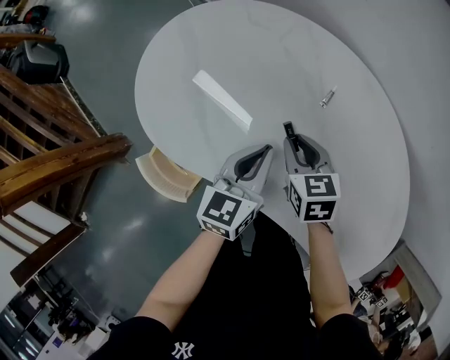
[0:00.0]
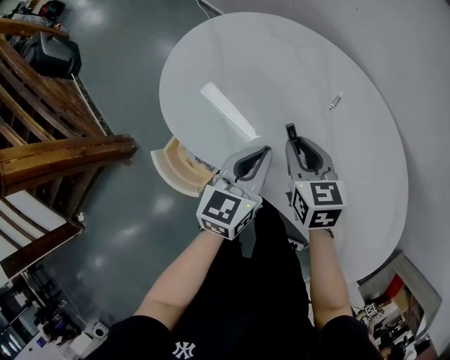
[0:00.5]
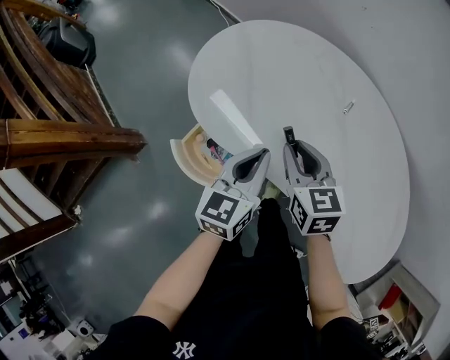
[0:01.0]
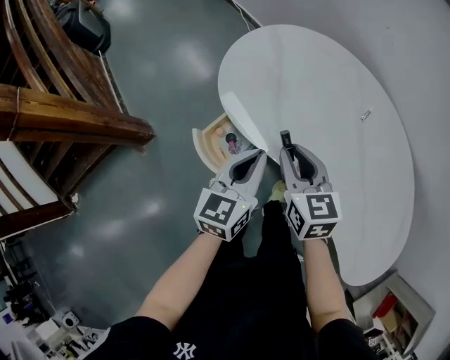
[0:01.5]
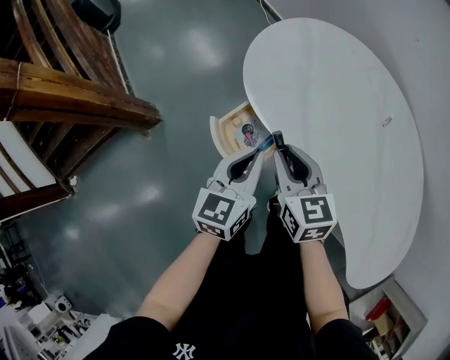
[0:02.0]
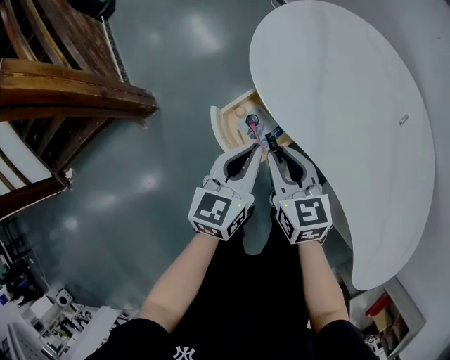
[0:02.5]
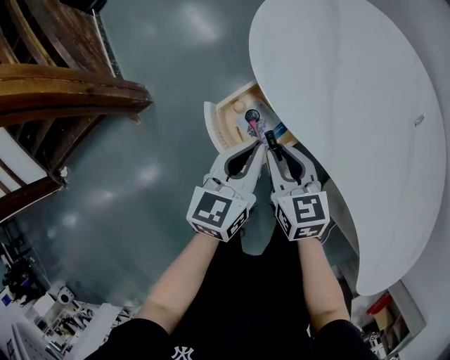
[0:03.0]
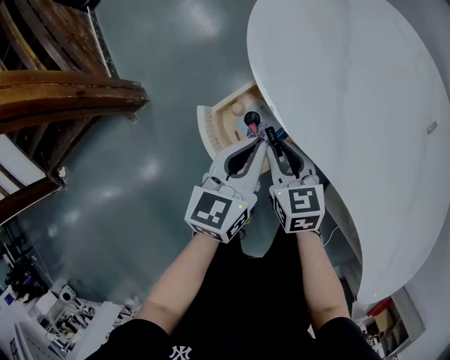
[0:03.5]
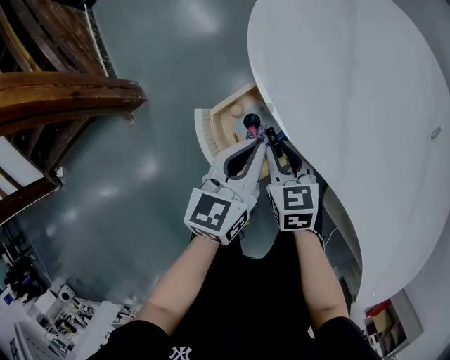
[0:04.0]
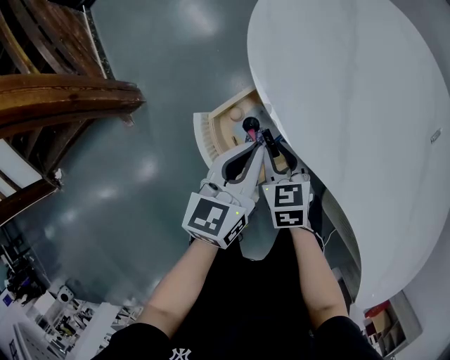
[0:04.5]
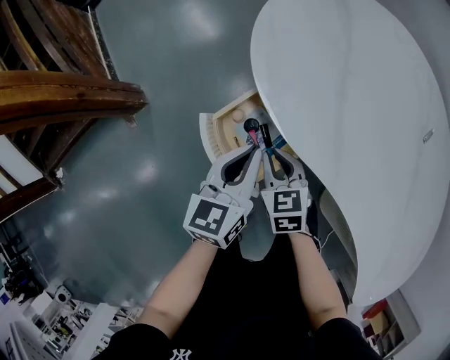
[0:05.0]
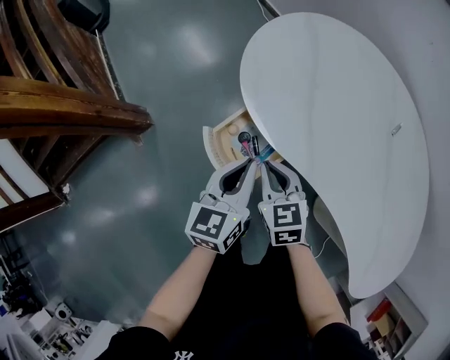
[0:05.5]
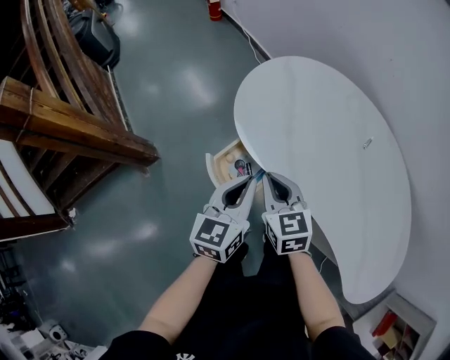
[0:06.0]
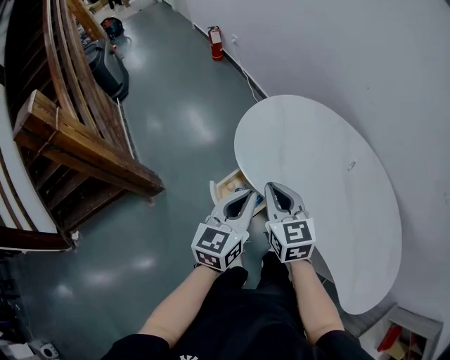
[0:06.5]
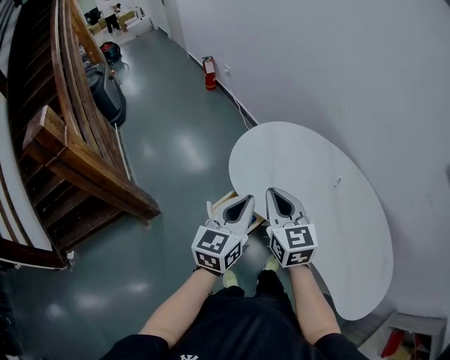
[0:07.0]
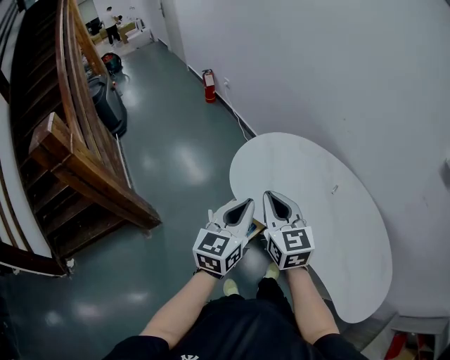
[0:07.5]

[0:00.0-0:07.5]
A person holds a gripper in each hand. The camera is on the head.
0:00.0 to 0:02.0: Both grippers move to the left and backward, about 30 cm. The right gripper turns by some 20 degrees.
0:02.0 to 0:04.0: The grippers both shift downward by approximately 20 cm.
0:04.0 to 0:05.5: Both grippers travel together upward, roughly 15 cm.
0:05.5 to 0:07.5: The two grippers go some 30 cm upward. The right gripper swivels some 30 degrees.

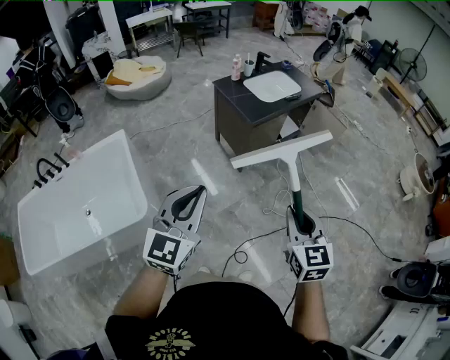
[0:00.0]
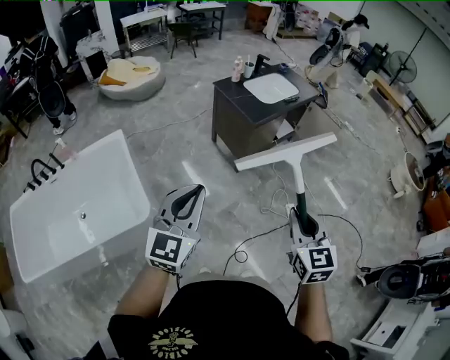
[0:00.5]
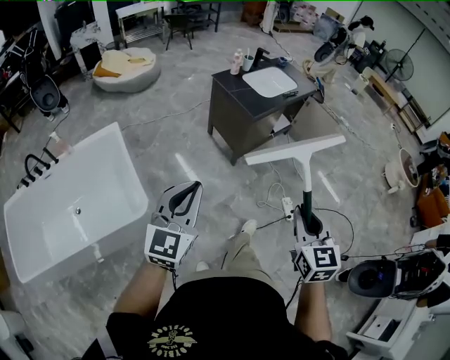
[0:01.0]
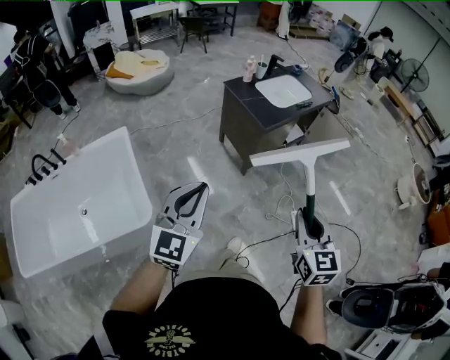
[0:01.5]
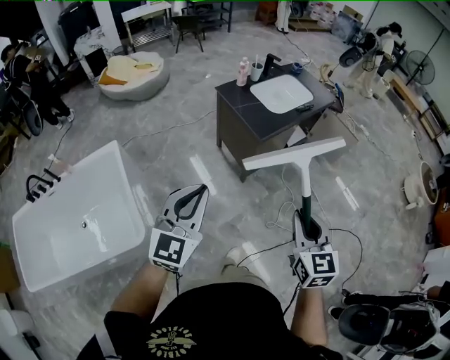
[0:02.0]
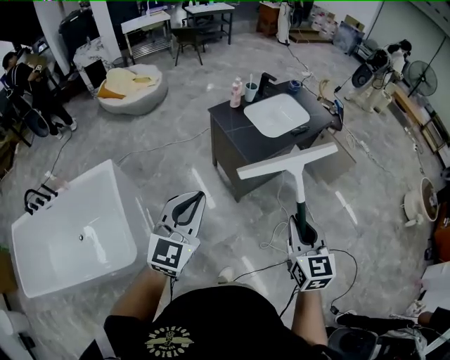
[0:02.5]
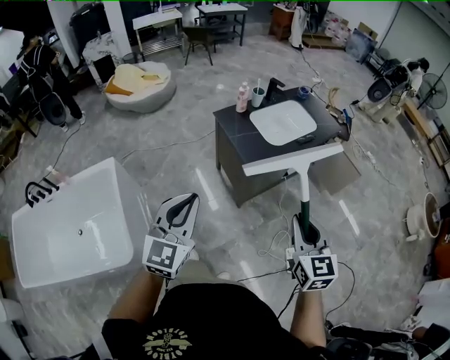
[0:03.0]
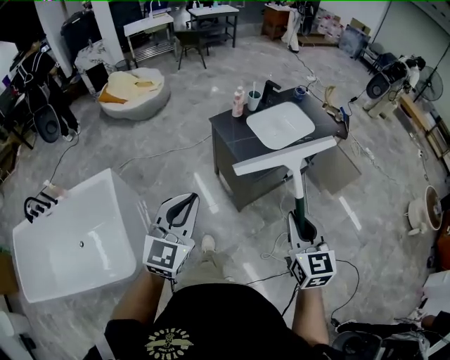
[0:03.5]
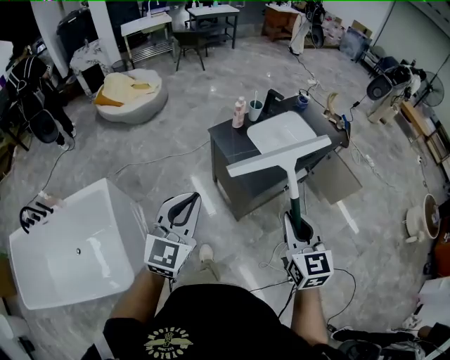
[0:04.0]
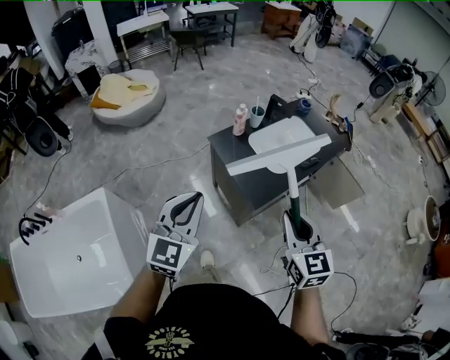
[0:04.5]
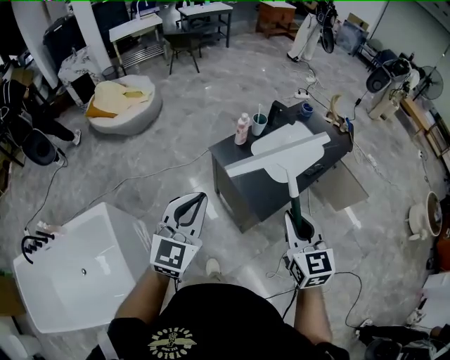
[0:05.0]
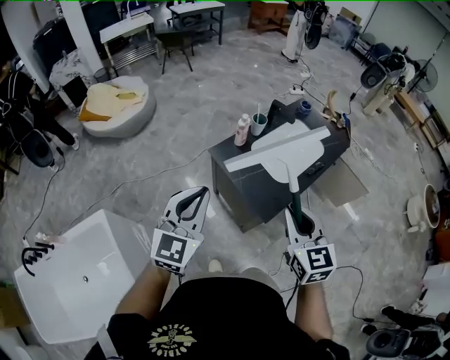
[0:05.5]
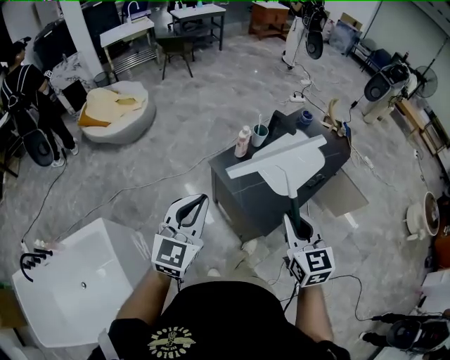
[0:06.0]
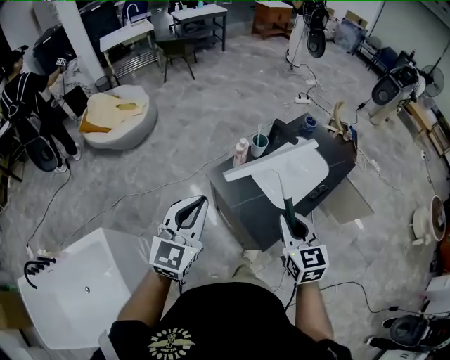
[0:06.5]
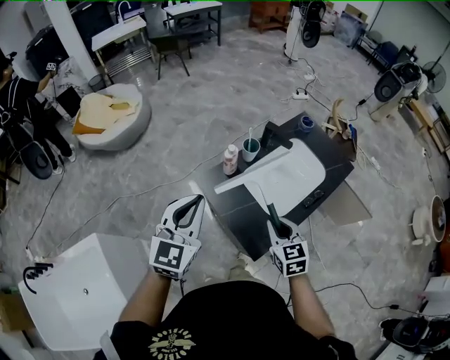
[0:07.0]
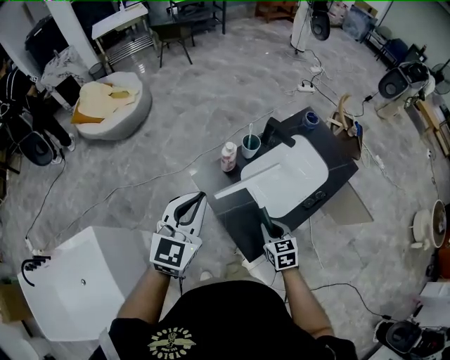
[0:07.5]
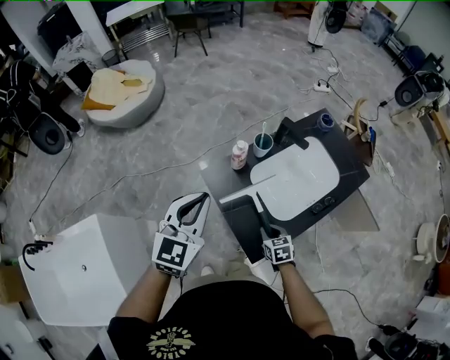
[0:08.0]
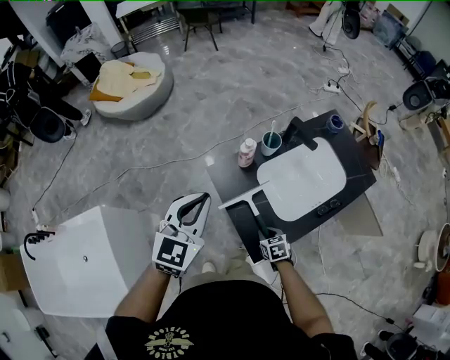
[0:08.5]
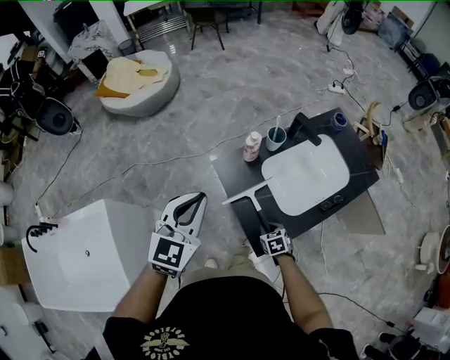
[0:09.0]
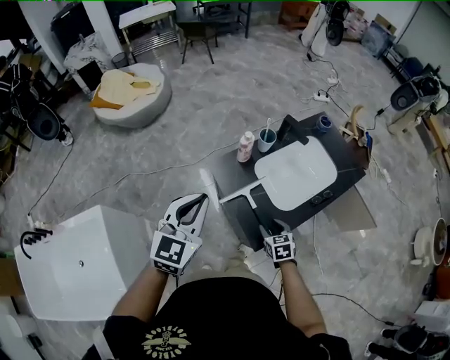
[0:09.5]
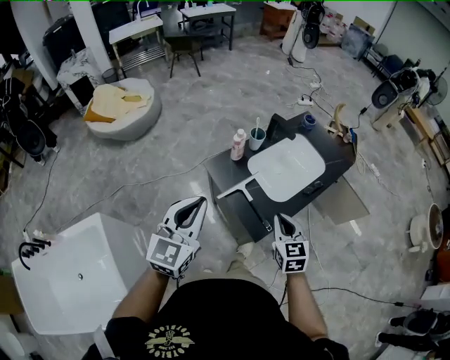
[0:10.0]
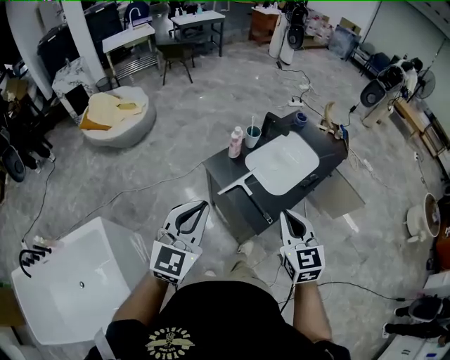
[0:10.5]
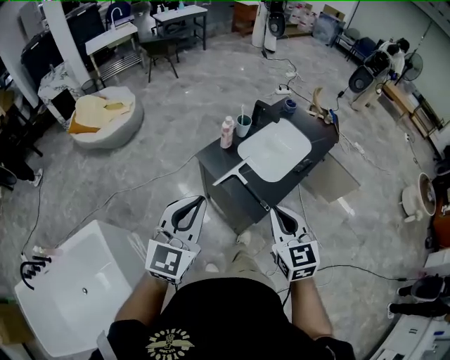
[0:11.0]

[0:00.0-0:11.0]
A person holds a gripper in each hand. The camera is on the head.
0:00.0 to 0:02.0: Both grippers travel together forward, about 15 cm.
0:02.0 to 0:03.5: Both grippers travel together forward, some 20 cm.
0:03.5 to 0:05.5: The right gripper goes about 25 cm forward and to the left. Meanwhile the left gripper is displaced forward by some 30 cm.
0:05.5 to 0:07.5: The left gripper moves forward, approximately 20 cm. The right gripper is displaced downward and forward by approximately 35 cm, and changes its angle by about 30 degrees.
0:07.5 to 0:09.0: The left gripper changes place by some 5 cm. The right gripper travels downward by about 15 cm, and rotates about 20 degrees.
0:09.0 to 0:11.0: The left gripper is displaced backward and upward by about 20 cm, and swivels some 20 degrees, while the right gripper travels upward and backward by some 40 cm, tilts its fingers some 40 degrees upward, and opens and closes again.

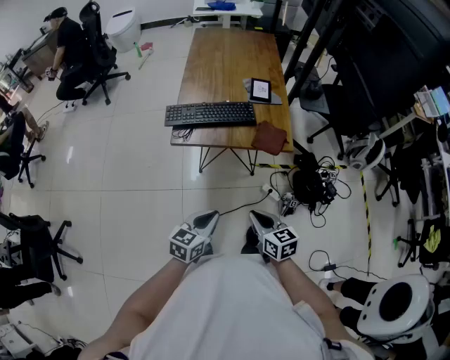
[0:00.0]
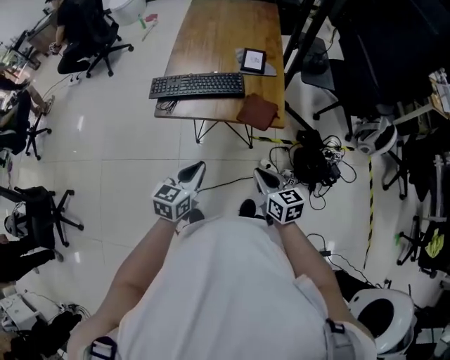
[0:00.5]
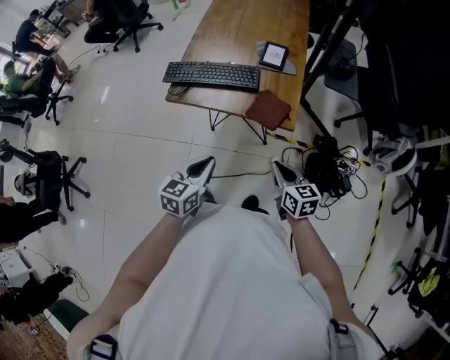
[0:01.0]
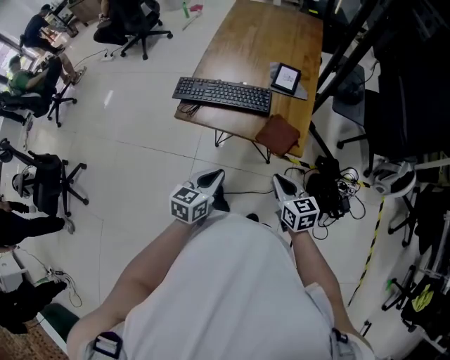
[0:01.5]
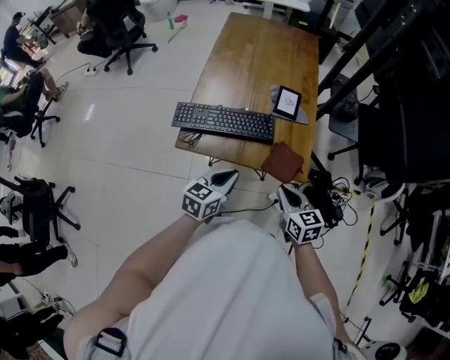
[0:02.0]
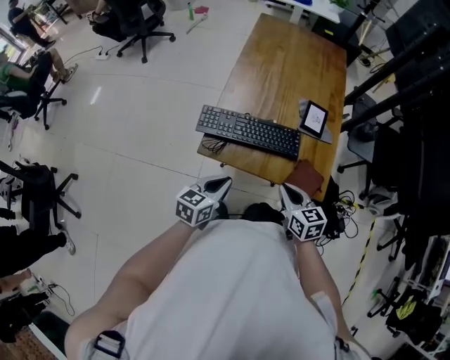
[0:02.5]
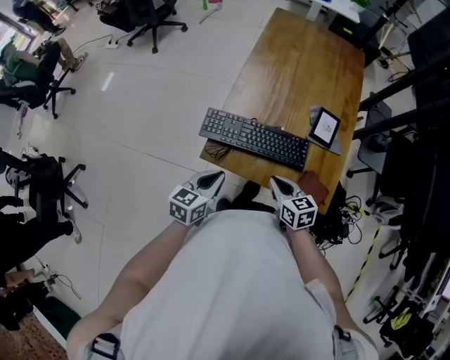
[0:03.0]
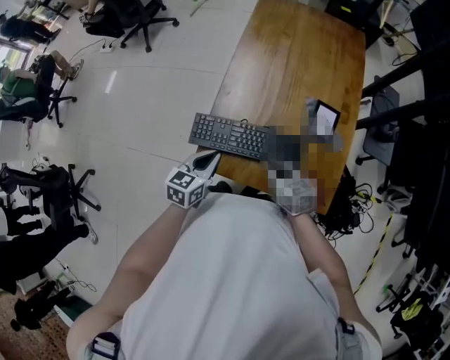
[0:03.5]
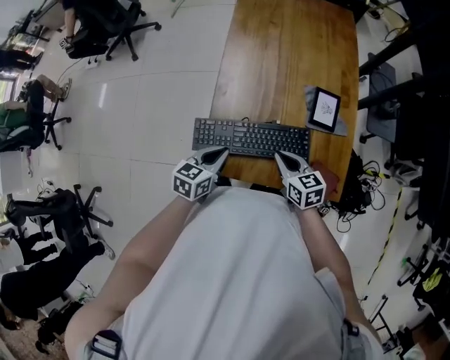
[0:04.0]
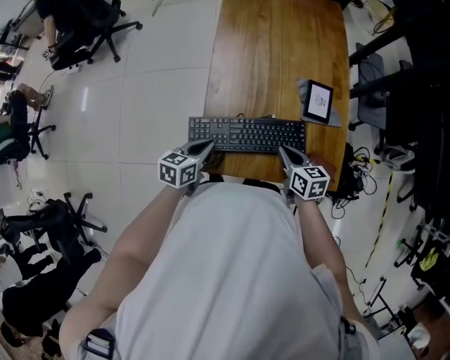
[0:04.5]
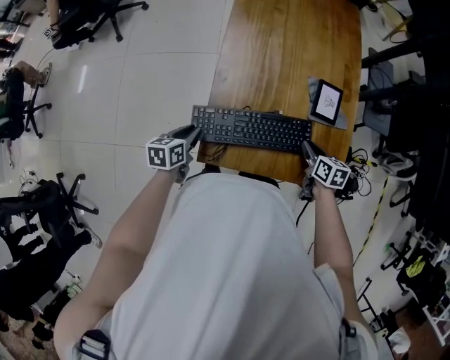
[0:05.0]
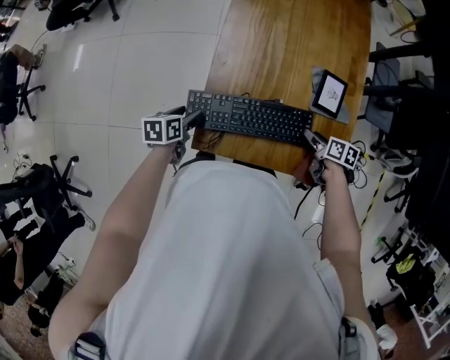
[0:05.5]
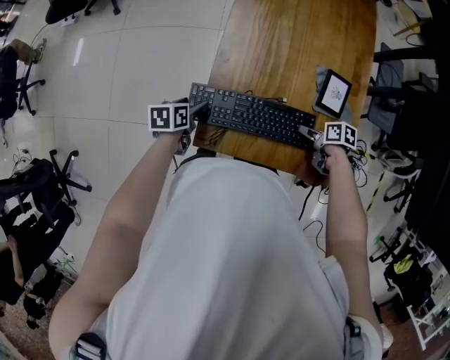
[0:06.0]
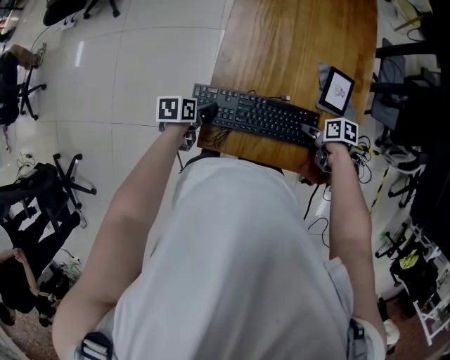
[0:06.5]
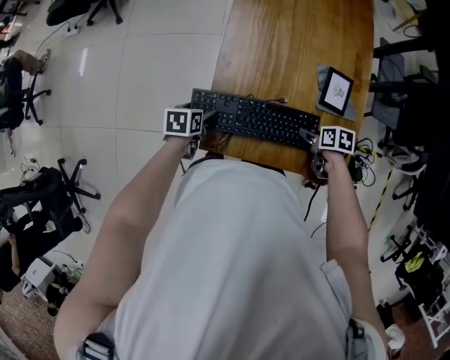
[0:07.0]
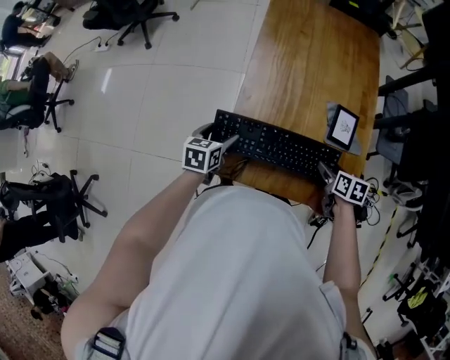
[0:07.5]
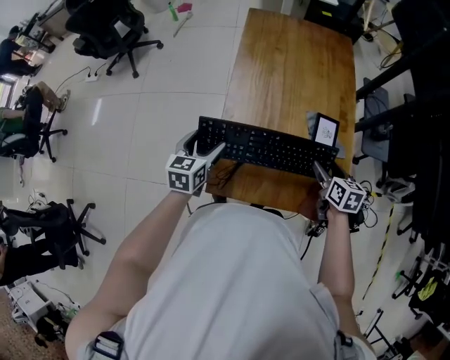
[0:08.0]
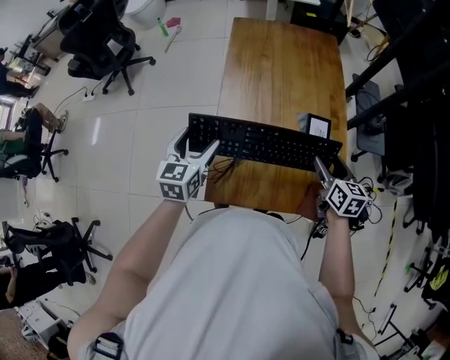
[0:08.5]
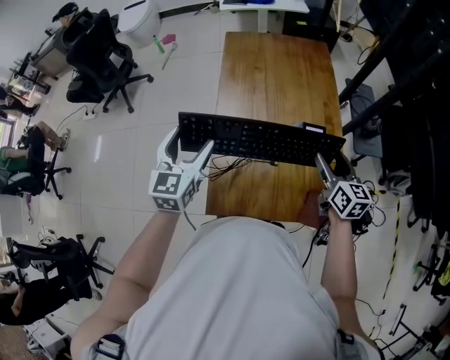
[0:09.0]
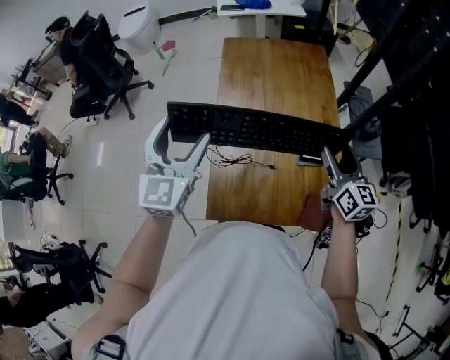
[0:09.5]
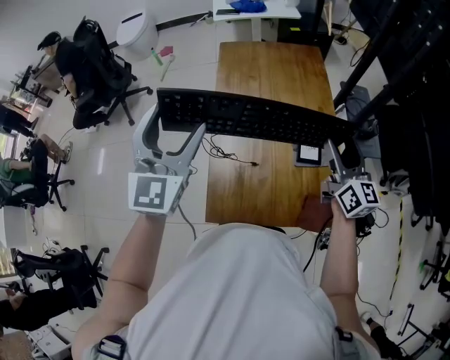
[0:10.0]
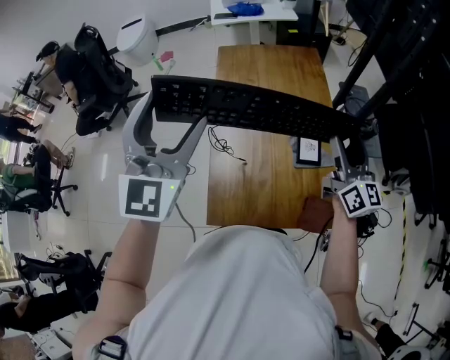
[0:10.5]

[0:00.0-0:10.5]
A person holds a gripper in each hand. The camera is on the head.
0:00.0 to 0:02.0: The right gripper moves forward and to the right, about 20 cm. Meanwhile the left gripper travels forward by about 20 cm.
0:02.0 to 0:04.0: Both grippers move forward and to the left, about 20 cm.
0:04.0 to 0:06.5: The left gripper moves downward, approximately 10 cm, rotates approximately 40 degrees, and opens up. Meanwhile the right gripper ends up roughly 15 cm from where it was, swivels approximately 50 degrees, and opens up.
0:06.5 to 0:08.5: The two grippers go about 20 cm upward. The right gripper points its fingers some 30 degrees further upward, while the left gripper angles its fingers upward, by roughly 30 degrees.
0:08.5 to 0:10.5: The left gripper shifts approximately 30 cm upward, and points its fingers about 30 degrees further upward, while the right gripper goes approximately 20 cm upward, and tips its fingers upward by roughly 40 degrees.
